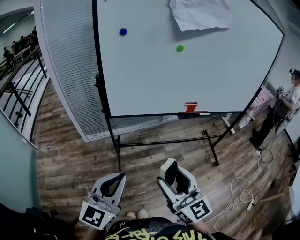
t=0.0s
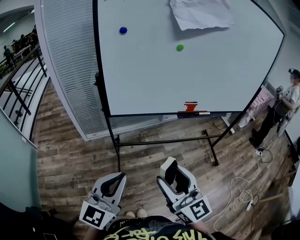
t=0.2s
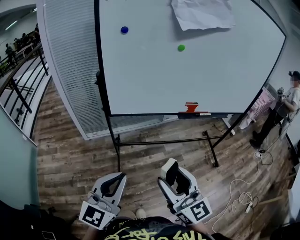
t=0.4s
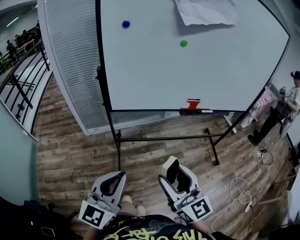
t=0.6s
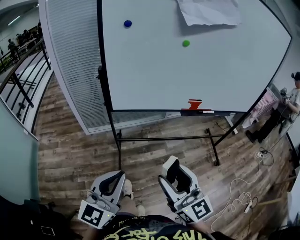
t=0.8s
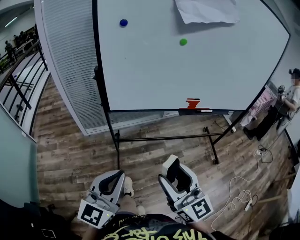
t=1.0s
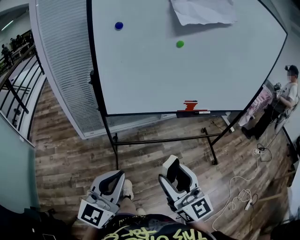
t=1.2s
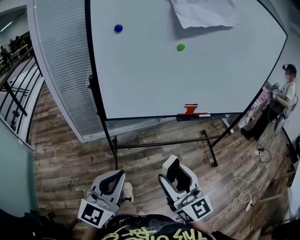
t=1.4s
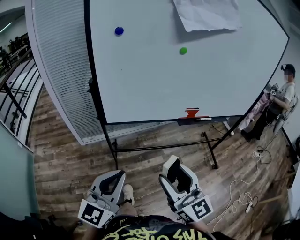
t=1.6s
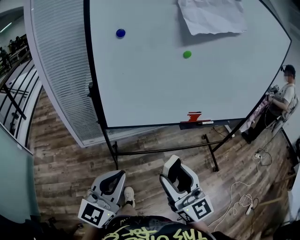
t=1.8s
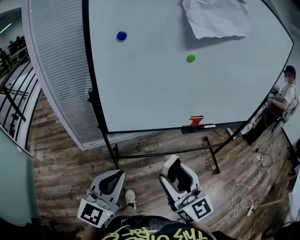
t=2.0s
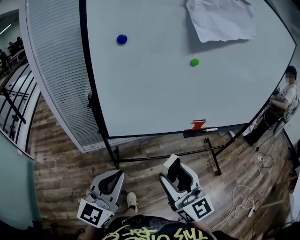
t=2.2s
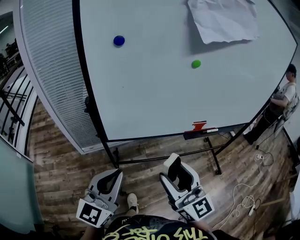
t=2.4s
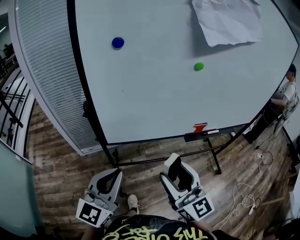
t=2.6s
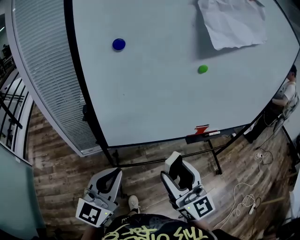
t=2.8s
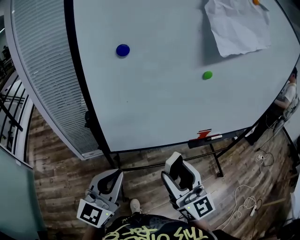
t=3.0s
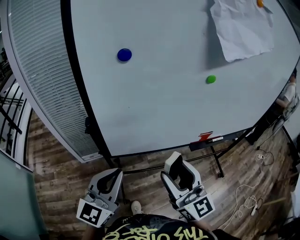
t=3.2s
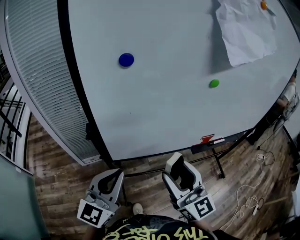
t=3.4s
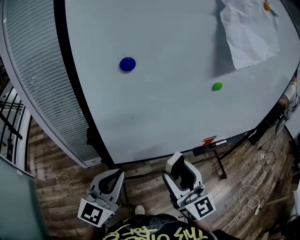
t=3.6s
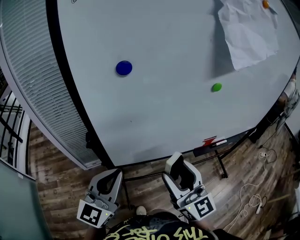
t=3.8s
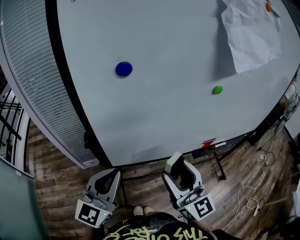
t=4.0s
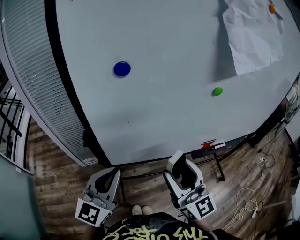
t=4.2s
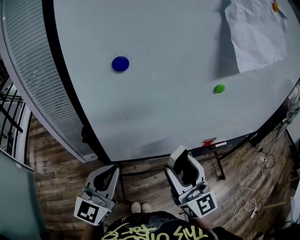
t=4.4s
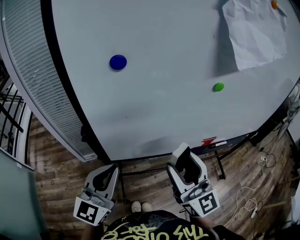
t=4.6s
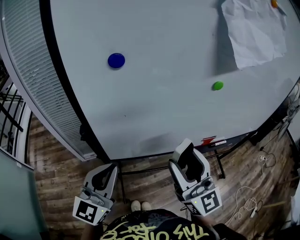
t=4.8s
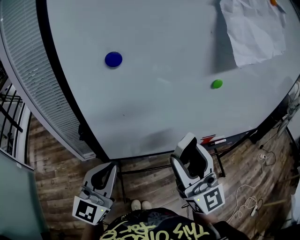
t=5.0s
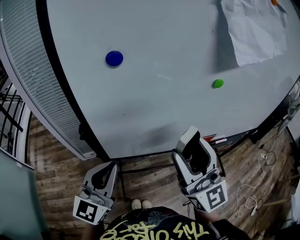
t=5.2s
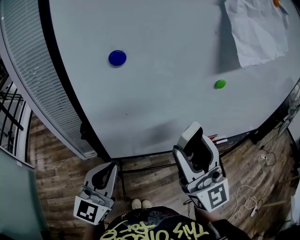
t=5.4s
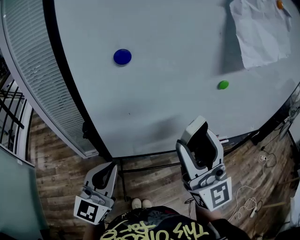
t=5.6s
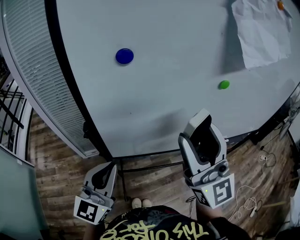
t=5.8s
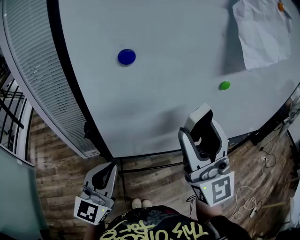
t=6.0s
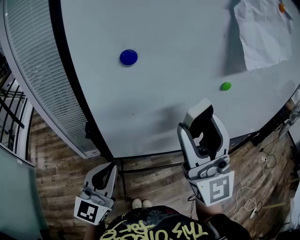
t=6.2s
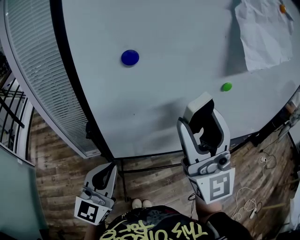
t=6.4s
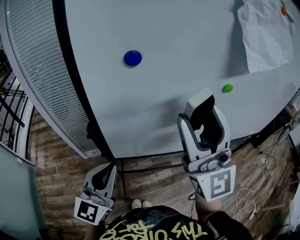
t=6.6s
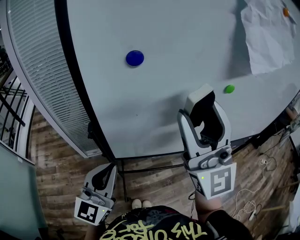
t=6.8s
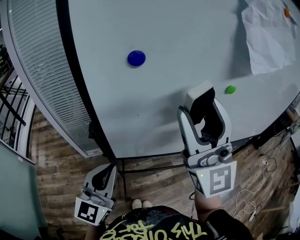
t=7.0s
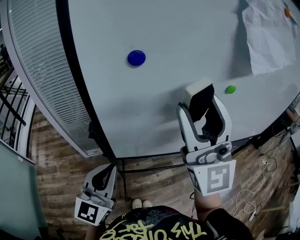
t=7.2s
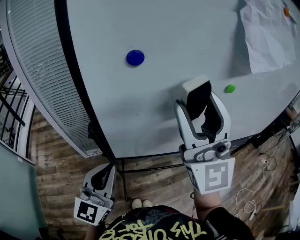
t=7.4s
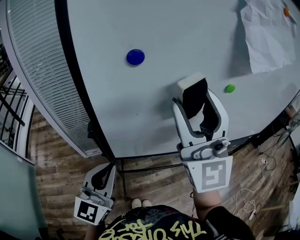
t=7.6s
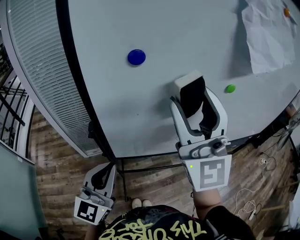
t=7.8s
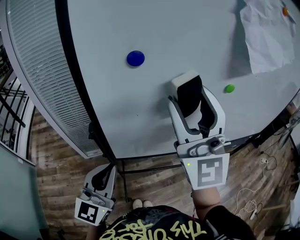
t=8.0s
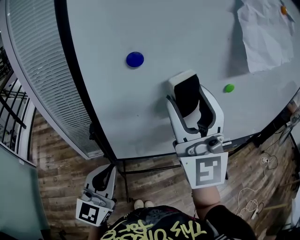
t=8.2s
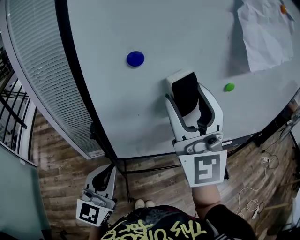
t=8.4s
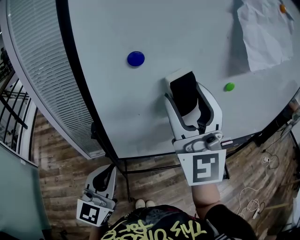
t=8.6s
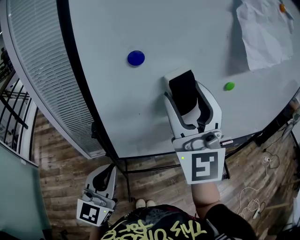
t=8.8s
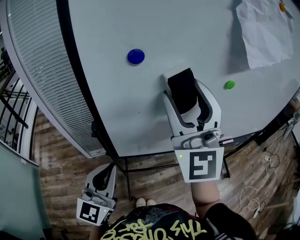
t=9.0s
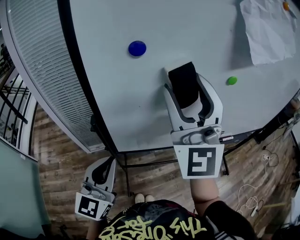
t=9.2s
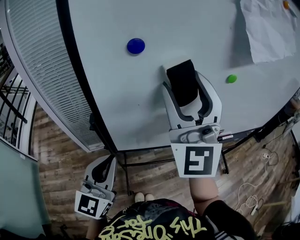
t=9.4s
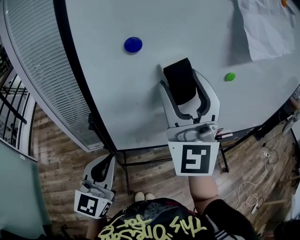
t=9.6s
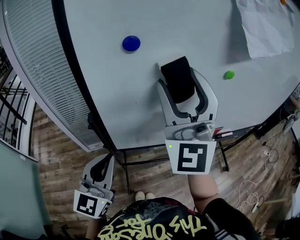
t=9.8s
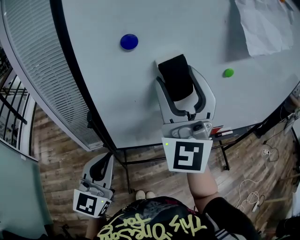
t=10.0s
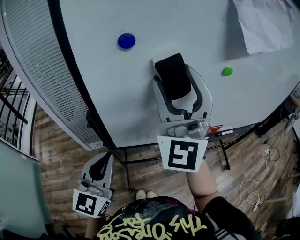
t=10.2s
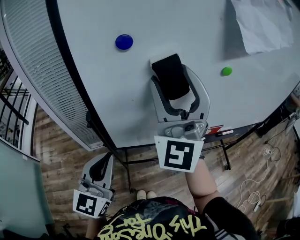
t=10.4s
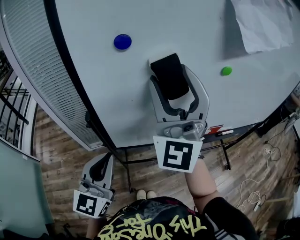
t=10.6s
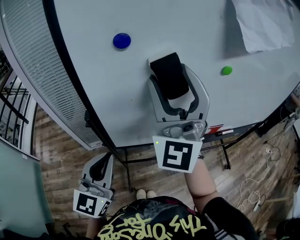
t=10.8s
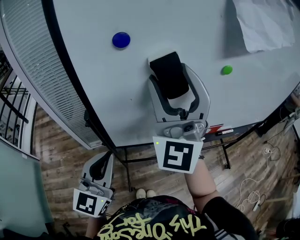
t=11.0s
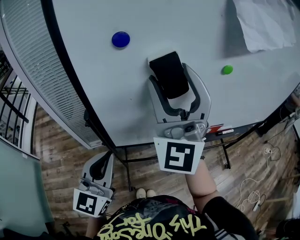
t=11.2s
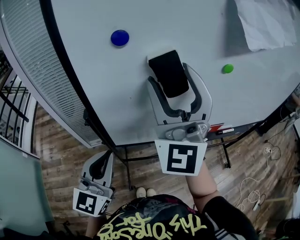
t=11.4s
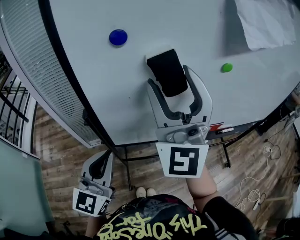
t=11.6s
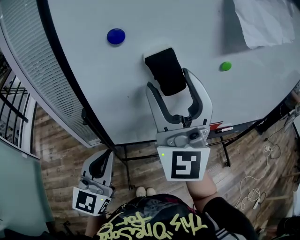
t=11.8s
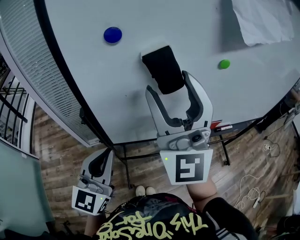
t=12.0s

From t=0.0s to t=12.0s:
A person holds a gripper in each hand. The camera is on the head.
From t=0.0s to t=1.6s: The two grippers go about 5 cm forward.
From t=1.6s to t=3.0s: Both grippers move forward, roughly 15 cm.
From t=3.0s to t=4.4s: The two grippers go about 5 cm forward.
From t=4.4s to t=6.0s: The right gripper goes approximately 10 cm upward.
From t=6.0s to t=7.6s: The right gripper travels upward by approximately 5 cm.
From t=7.6s to t=12.0s: The grippers move only a little.

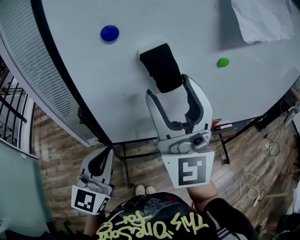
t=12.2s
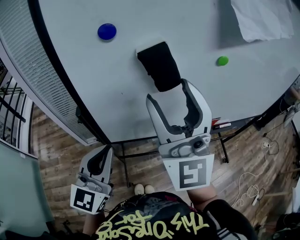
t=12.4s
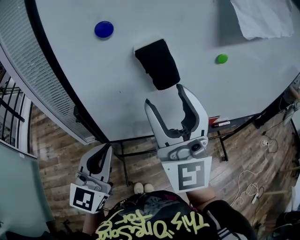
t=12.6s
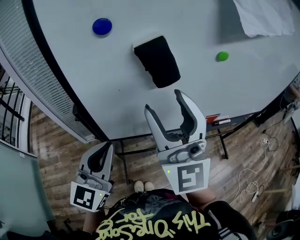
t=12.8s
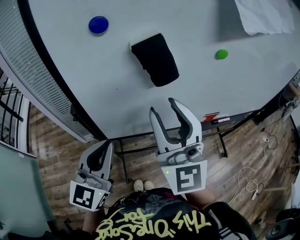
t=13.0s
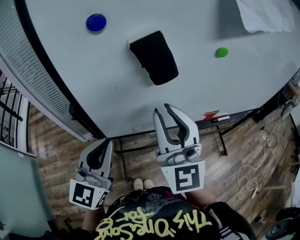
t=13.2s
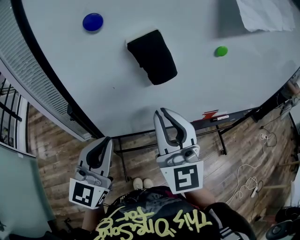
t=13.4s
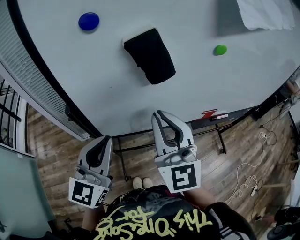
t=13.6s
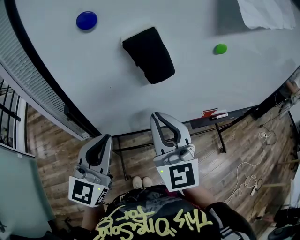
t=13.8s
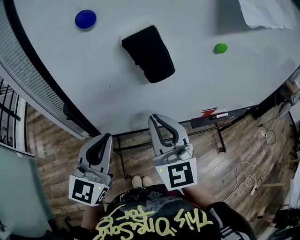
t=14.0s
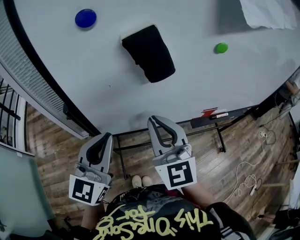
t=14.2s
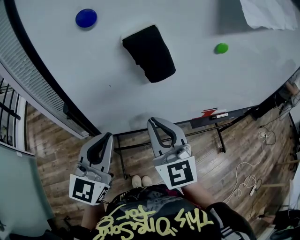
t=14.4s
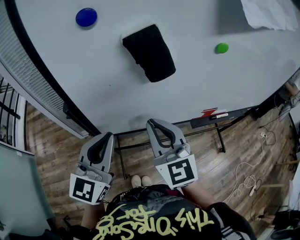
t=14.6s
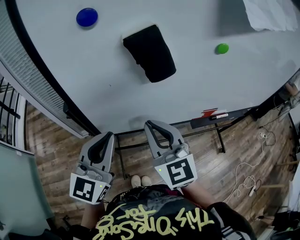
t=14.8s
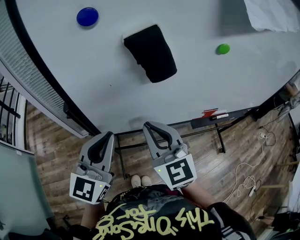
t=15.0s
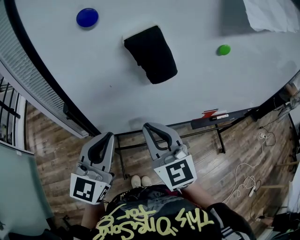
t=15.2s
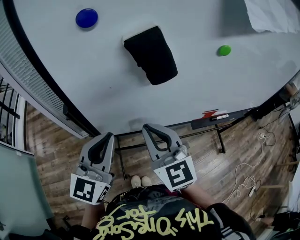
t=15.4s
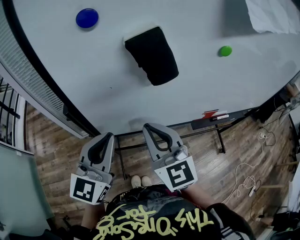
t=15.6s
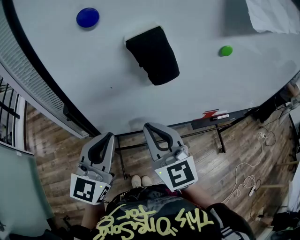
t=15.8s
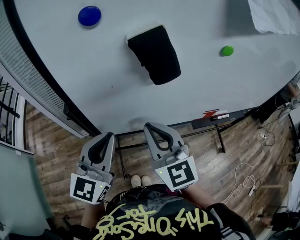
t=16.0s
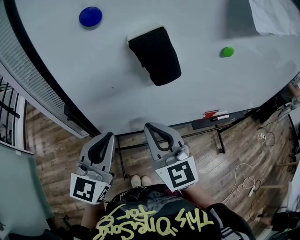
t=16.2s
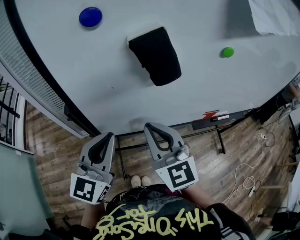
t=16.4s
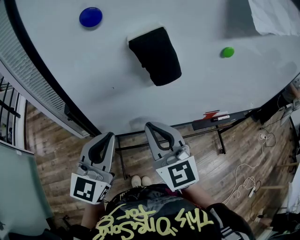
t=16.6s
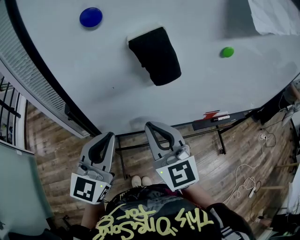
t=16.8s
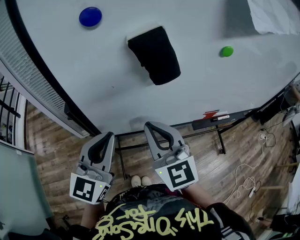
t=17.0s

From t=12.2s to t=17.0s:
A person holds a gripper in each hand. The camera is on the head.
From t=12.2s to t=13.8s: The right gripper shifts approximately 10 cm downward, rotates roughly 20 degrees, and closes up.
From t=13.8s to t=15.4s: The right gripper shifts roughly 5 cm downward.
From t=15.4s to t=17.0s: There are only small adjustments of the grippers.

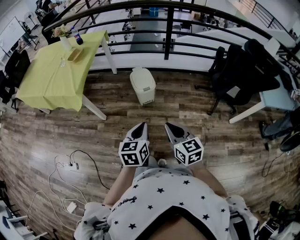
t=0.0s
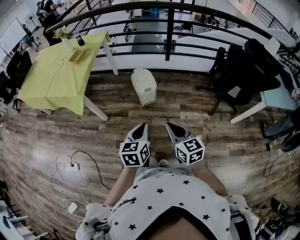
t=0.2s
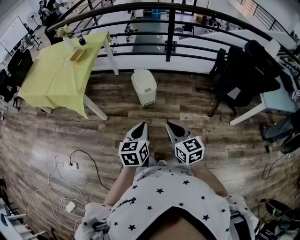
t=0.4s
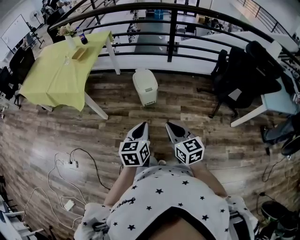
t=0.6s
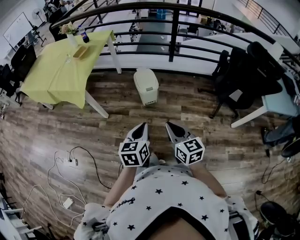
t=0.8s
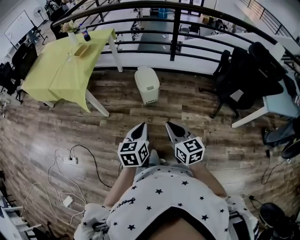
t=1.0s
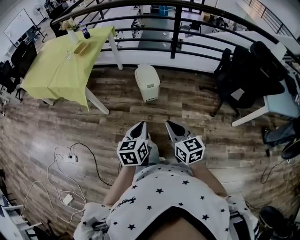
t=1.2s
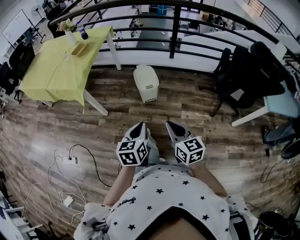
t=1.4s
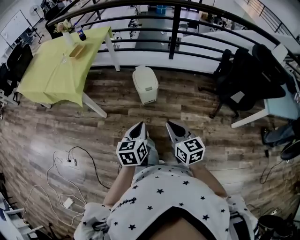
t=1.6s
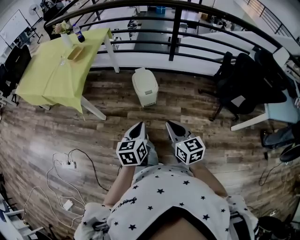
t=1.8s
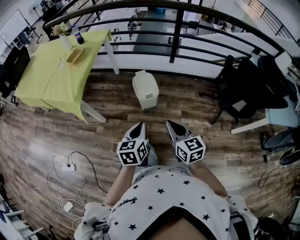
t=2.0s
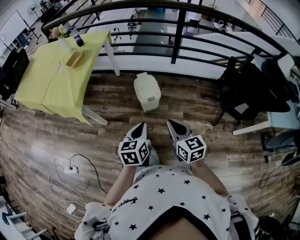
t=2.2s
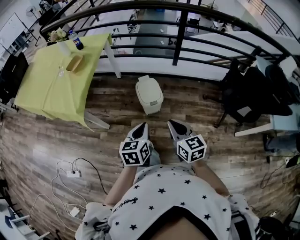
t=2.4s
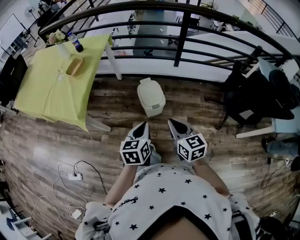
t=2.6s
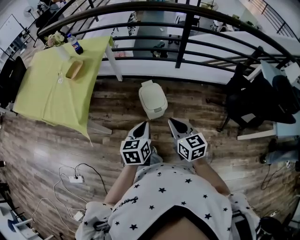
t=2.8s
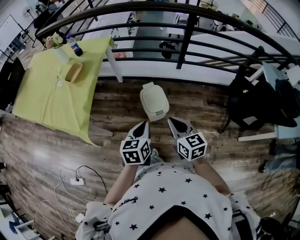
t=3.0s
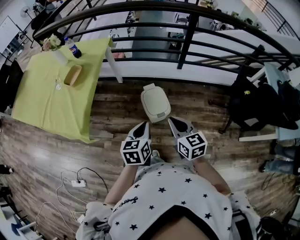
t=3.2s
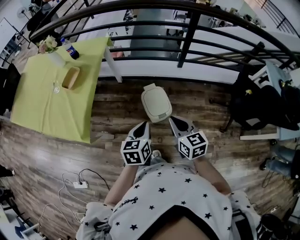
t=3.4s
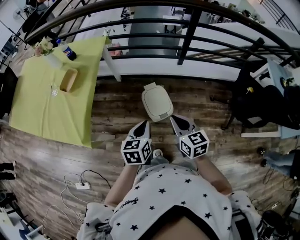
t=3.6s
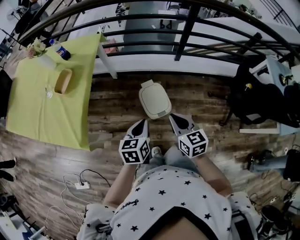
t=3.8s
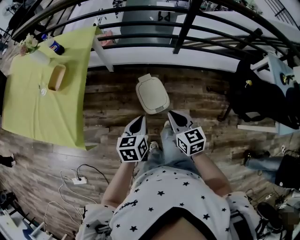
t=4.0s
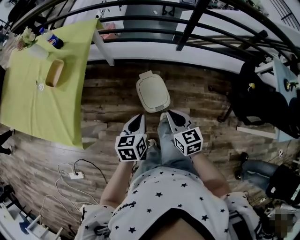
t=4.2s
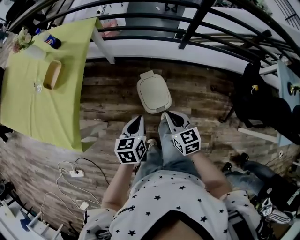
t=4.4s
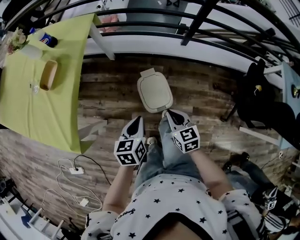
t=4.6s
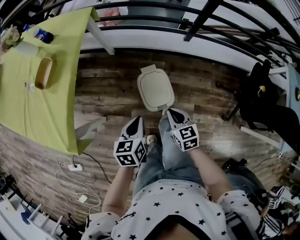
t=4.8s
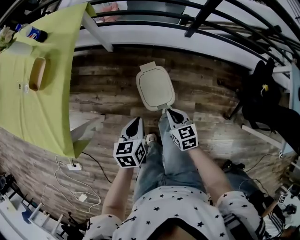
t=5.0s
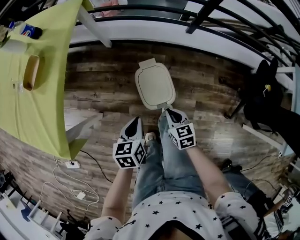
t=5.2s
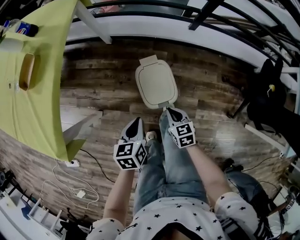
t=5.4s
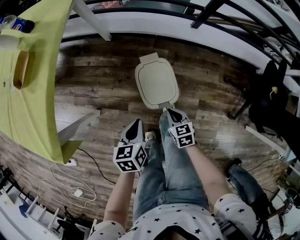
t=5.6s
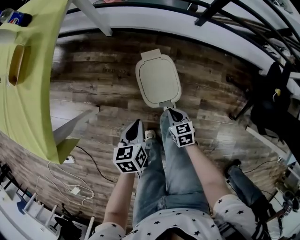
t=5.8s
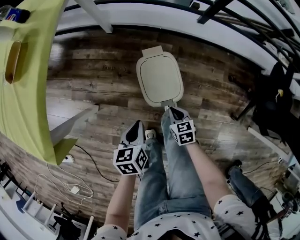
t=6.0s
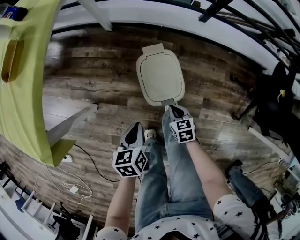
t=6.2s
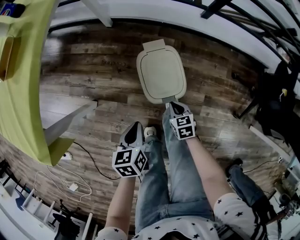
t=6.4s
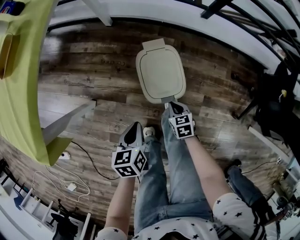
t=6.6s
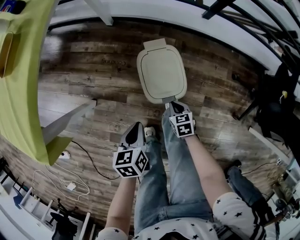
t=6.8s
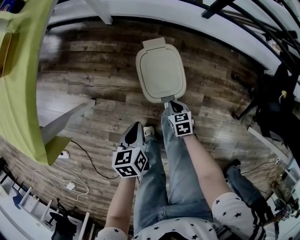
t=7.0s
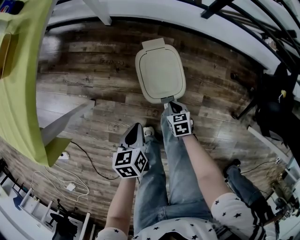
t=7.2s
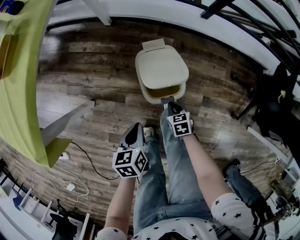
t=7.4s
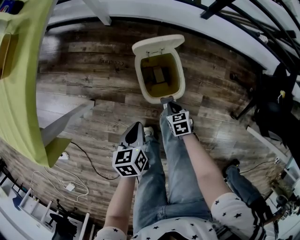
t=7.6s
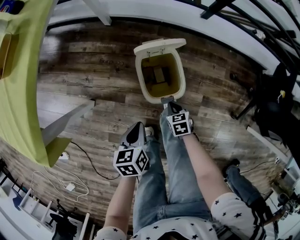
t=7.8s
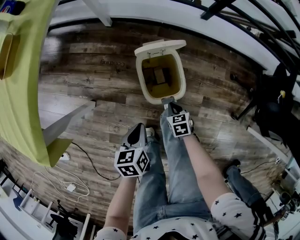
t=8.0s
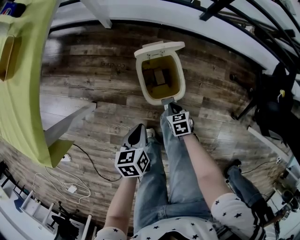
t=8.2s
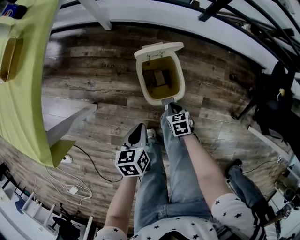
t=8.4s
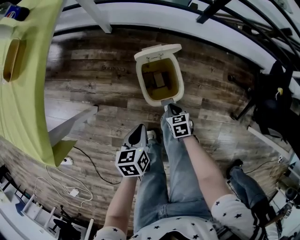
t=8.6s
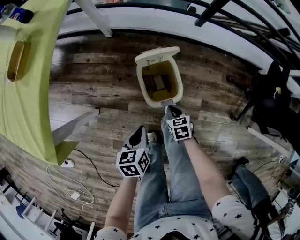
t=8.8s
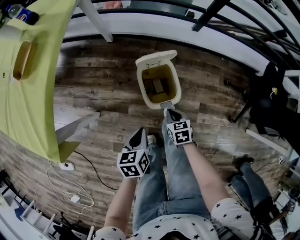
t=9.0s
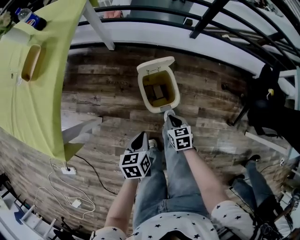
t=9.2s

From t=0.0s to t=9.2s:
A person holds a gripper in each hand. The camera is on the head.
From t=0.0s to t=1.6s: There are only small adjustments of the grippers.
From t=1.6s to t=3.0s: Both grippers travel together forward, approximately 30 cm.
From t=3.0s to t=4.6s: Both grippers move forward and downward, roughly 25 cm.
From t=4.6s to t=6.2s: The two grippers go about 30 cm downward.
From t=6.2s to t=7.6s: There are only small adjustments of the grippers.
From t=7.6s to t=9.2s: The right gripper heads upward, covering about 15 cm; the left gripper moves upward, about 5 cm.
